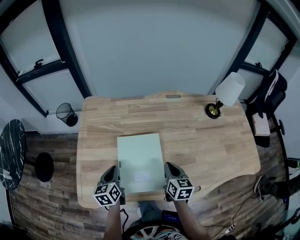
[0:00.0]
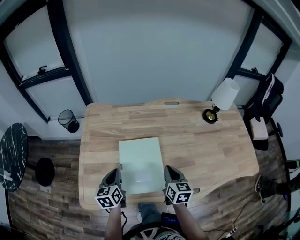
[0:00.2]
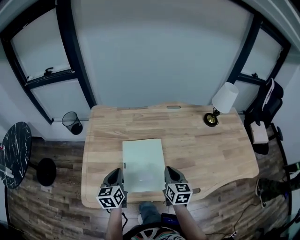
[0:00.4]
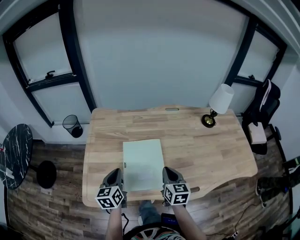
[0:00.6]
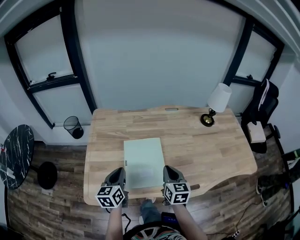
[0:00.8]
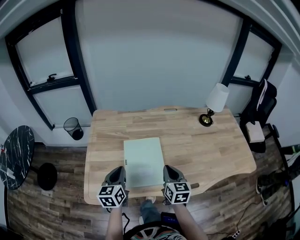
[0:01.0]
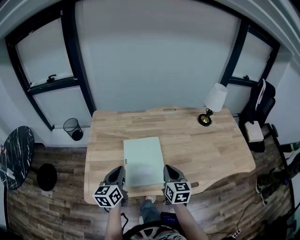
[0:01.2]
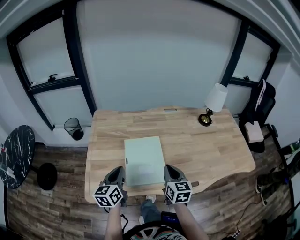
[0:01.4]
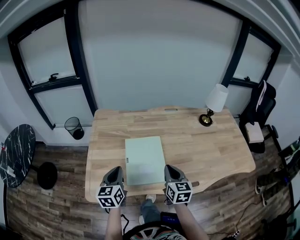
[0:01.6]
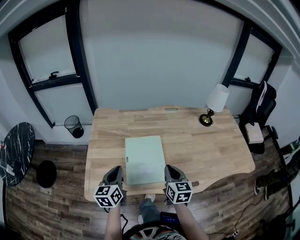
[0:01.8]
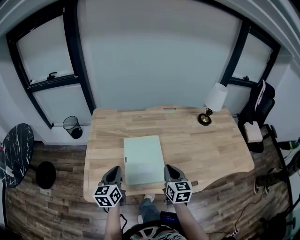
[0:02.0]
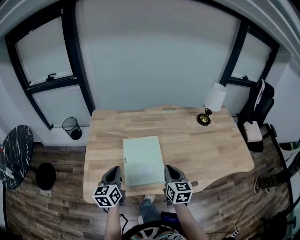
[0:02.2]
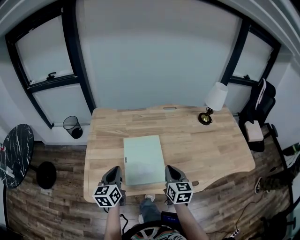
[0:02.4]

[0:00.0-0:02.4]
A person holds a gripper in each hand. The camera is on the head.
0:00.0 to 0:01.2: The two grippers go some 10 cm upward and backward.
0:01.2 to 0:02.4: The grippers move only a little.

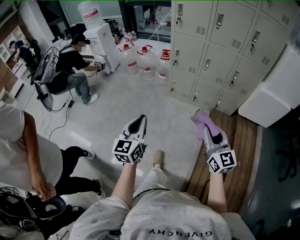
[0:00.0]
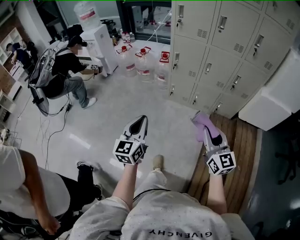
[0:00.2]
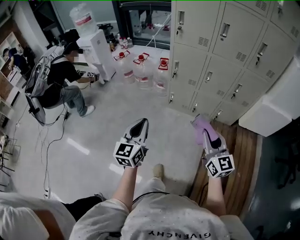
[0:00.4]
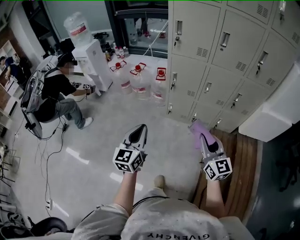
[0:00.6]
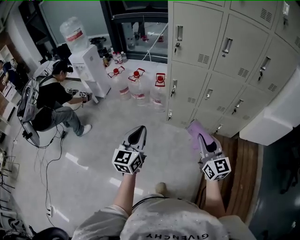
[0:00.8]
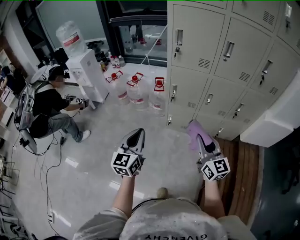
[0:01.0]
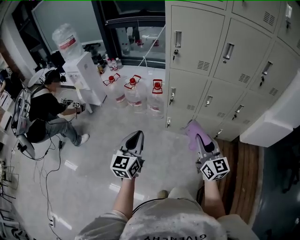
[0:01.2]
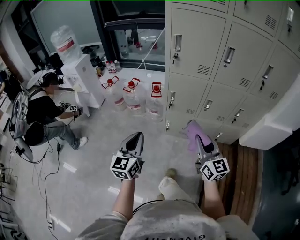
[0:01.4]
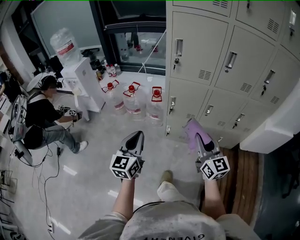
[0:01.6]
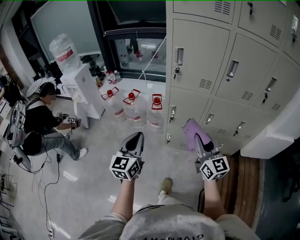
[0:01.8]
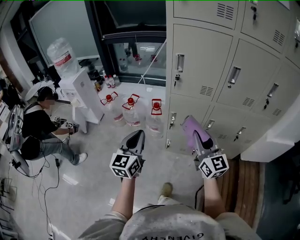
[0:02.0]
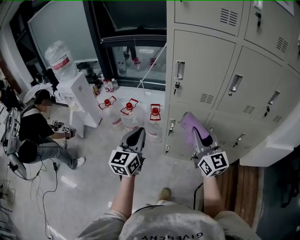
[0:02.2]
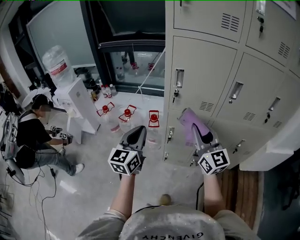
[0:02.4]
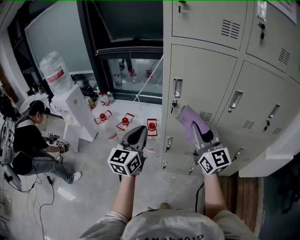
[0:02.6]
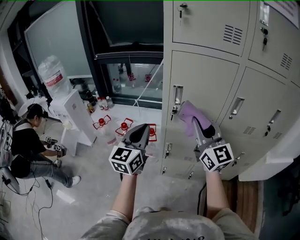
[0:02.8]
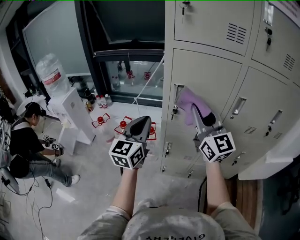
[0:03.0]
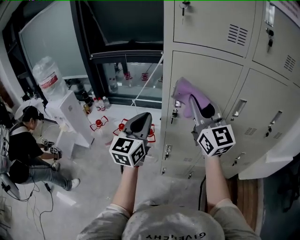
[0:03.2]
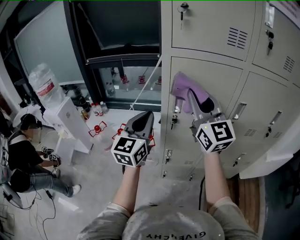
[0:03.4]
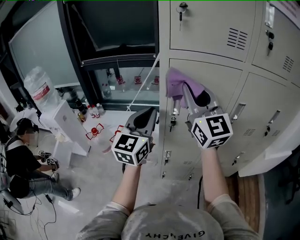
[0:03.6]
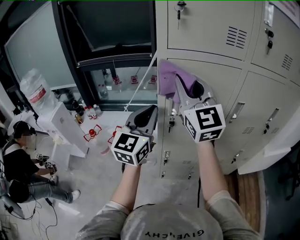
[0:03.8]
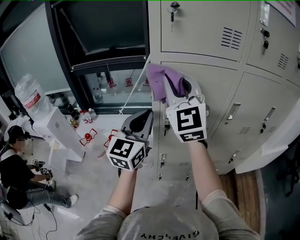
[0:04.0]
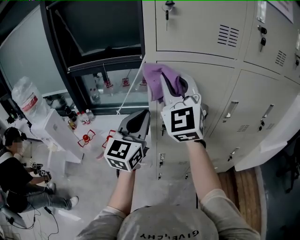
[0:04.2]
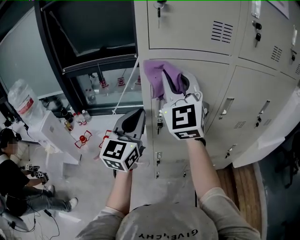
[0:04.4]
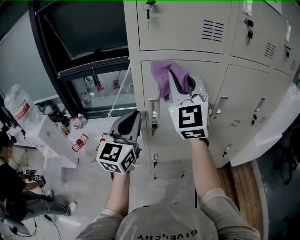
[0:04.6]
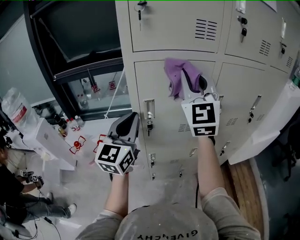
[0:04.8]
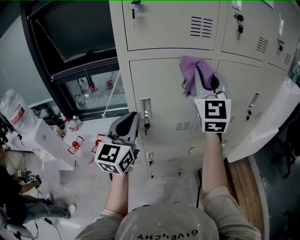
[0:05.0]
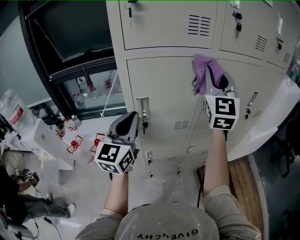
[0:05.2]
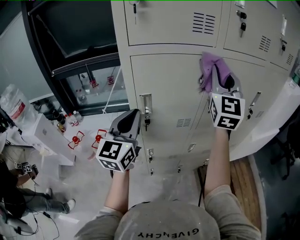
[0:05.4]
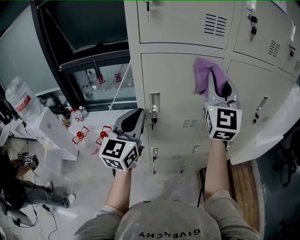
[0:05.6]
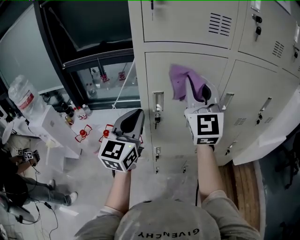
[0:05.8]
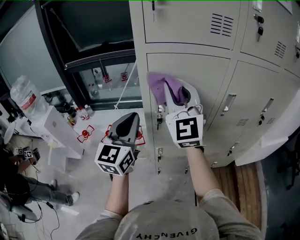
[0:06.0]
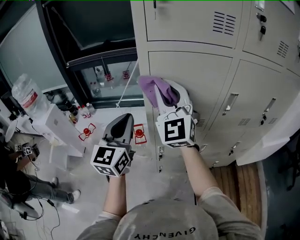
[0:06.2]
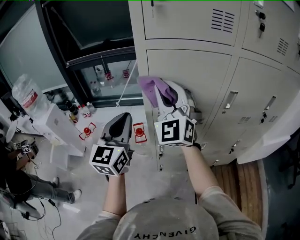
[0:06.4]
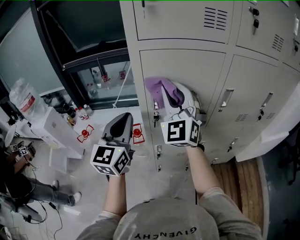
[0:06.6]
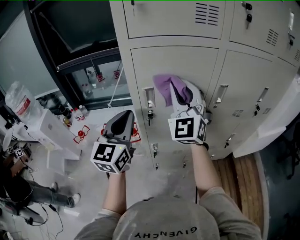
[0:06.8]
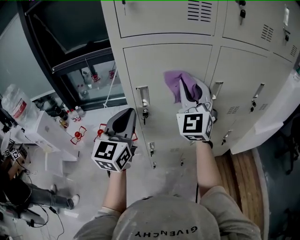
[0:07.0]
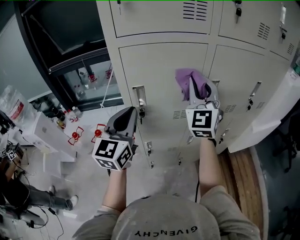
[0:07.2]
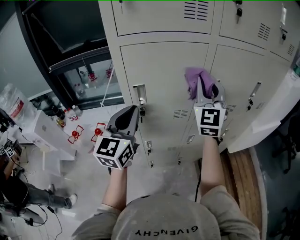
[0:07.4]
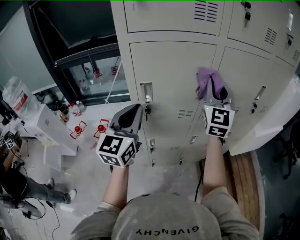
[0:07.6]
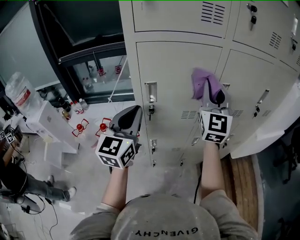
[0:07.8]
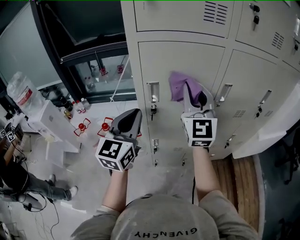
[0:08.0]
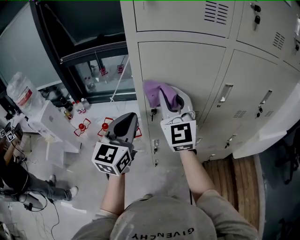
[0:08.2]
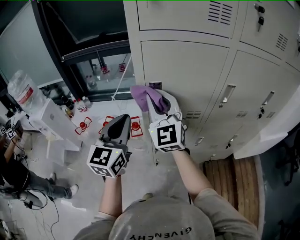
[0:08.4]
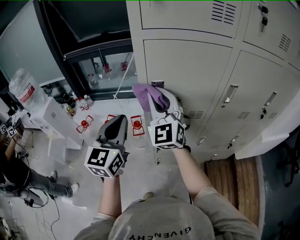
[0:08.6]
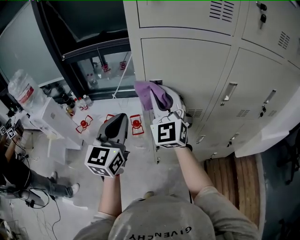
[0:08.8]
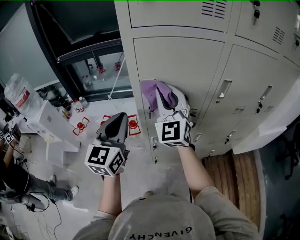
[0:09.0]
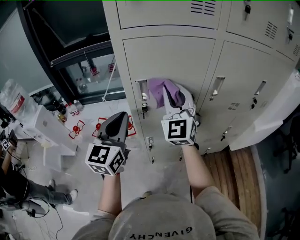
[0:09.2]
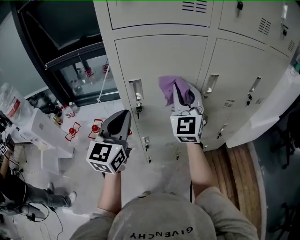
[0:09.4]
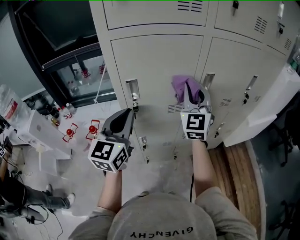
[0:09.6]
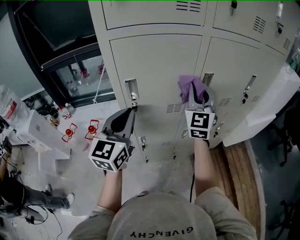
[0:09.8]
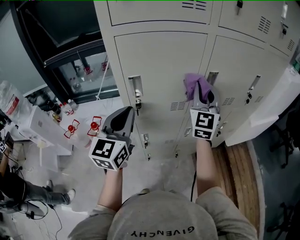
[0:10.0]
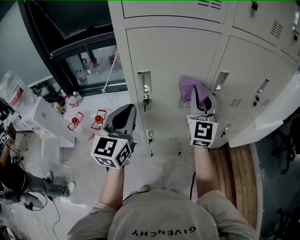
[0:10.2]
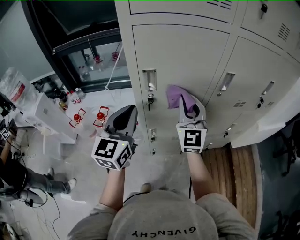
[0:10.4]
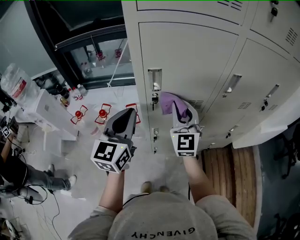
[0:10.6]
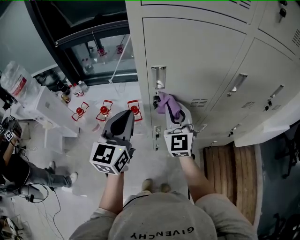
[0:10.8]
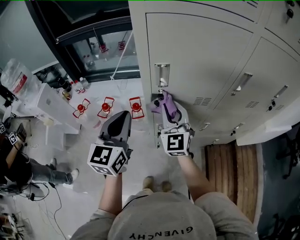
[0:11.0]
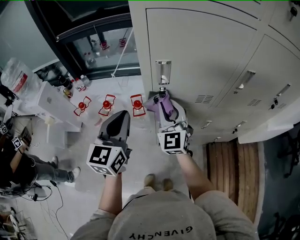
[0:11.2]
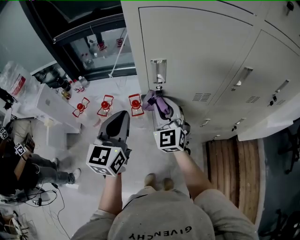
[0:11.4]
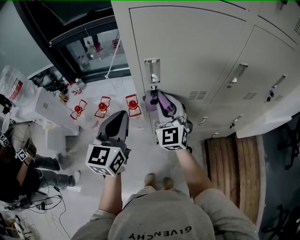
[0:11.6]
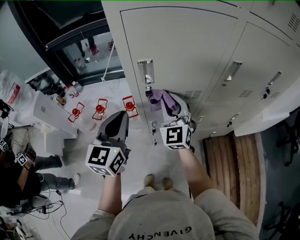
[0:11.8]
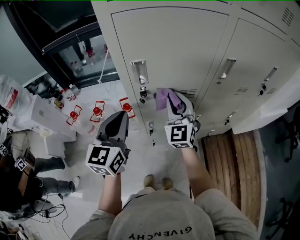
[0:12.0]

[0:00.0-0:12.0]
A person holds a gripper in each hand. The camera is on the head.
0:00.0 to 0:01.6: The two grippers travel together, forward, some 40 cm.
0:01.6 to 0:03.0: Both grippers travel together forward and upward, some 35 cm. The right gripper changes its angle by roughly 20 degrees.
0:03.0 to 0:04.4: The left gripper heads forward and upward, covering approximately 10 cm. The right gripper goes about 15 cm upward, forward and to the left, and changes its angle by roughly 40 degrees.
0:04.4 to 0:06.0: The right gripper heads downward, covering about 5 cm, and moves roughly 20 cm to the right and comes back.
0:06.0 to 0:07.6: The right gripper shifts some 20 cm to the right, and rotates some 30 degrees; the left gripper travels to the right by approximately 5 cm.
0:07.6 to 0:09.0: The left gripper goes about 5 cm to the left. The right gripper goes roughly 20 cm to the left, and rotates roughly 20 degrees.
0:09.0 to 0:10.4: The right gripper is displaced to the right and downward by about 10 cm.
0:10.4 to 0:12.0: The right gripper travels downward by about 10 cm, and goes to the left and returns, approximately 15 cm each way.

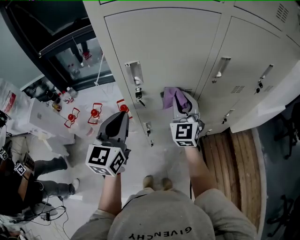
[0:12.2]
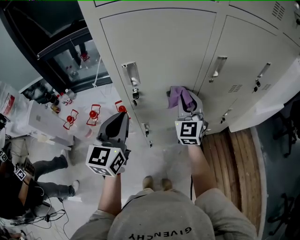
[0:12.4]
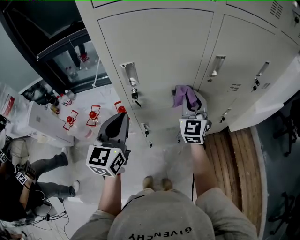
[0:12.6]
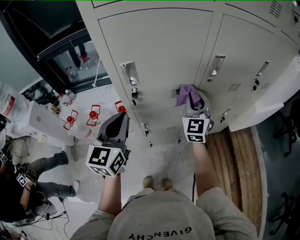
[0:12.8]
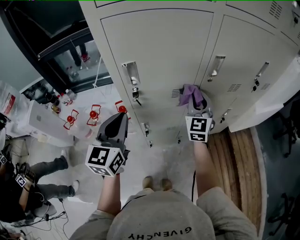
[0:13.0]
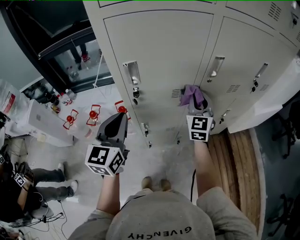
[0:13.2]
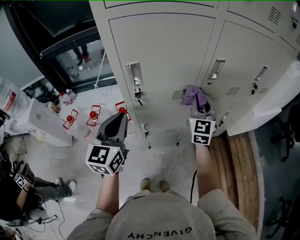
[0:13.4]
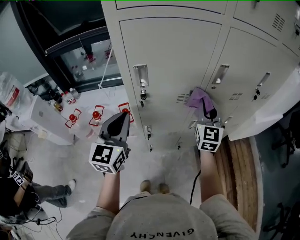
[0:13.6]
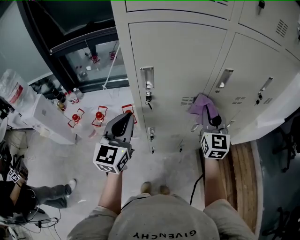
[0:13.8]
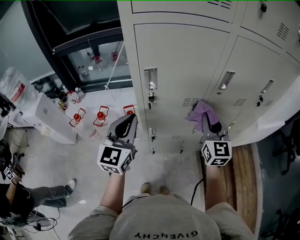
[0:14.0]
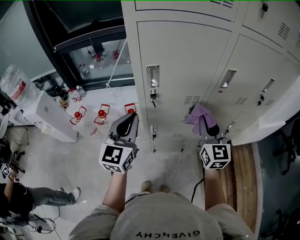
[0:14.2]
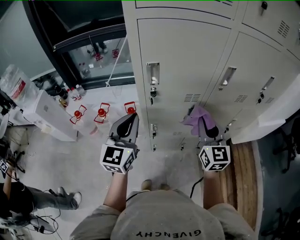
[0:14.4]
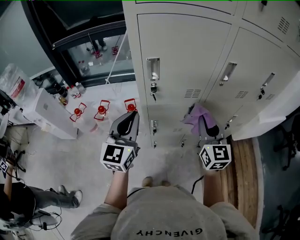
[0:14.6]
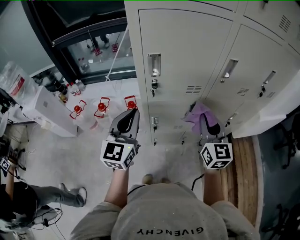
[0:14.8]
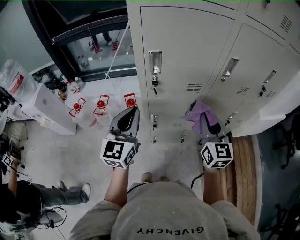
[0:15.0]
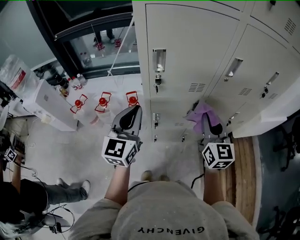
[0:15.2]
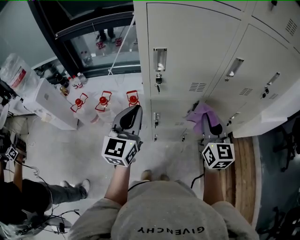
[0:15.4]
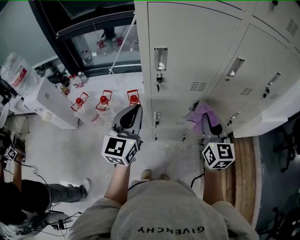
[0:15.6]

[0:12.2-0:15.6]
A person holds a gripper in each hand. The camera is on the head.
0:12.2 to 0:13.8: The right gripper heads to the right, covering about 10 cm.
0:13.8 to 0:15.6: The right gripper goes some 10 cm backward.

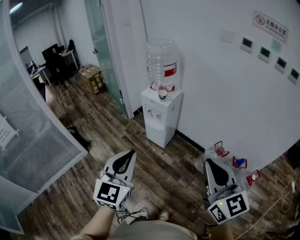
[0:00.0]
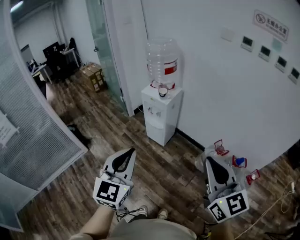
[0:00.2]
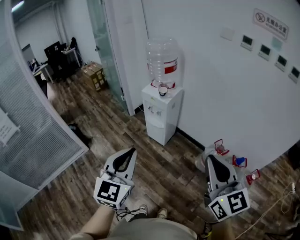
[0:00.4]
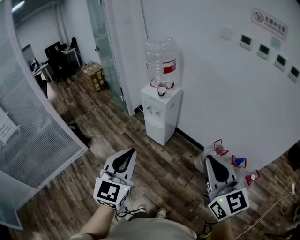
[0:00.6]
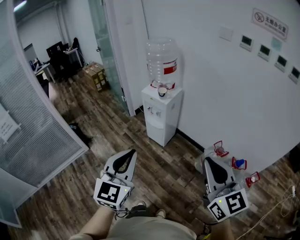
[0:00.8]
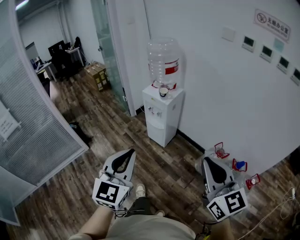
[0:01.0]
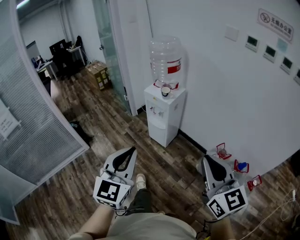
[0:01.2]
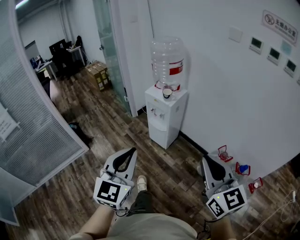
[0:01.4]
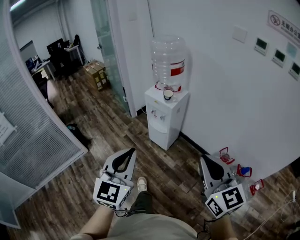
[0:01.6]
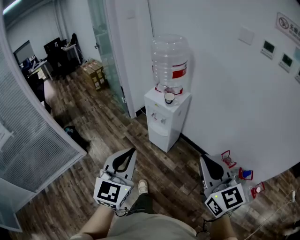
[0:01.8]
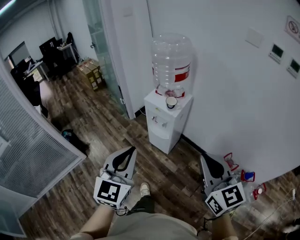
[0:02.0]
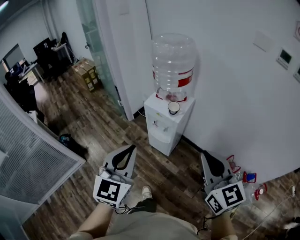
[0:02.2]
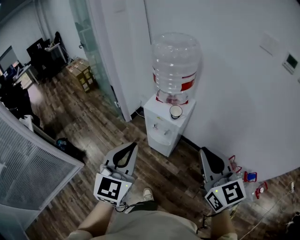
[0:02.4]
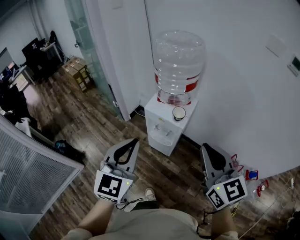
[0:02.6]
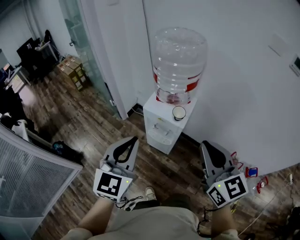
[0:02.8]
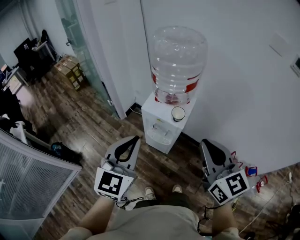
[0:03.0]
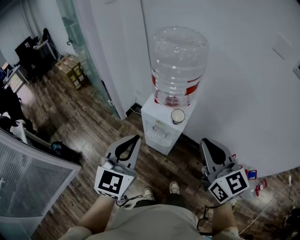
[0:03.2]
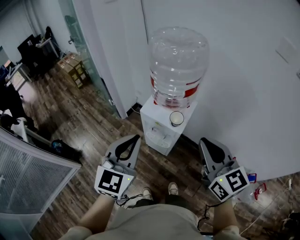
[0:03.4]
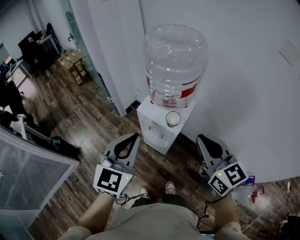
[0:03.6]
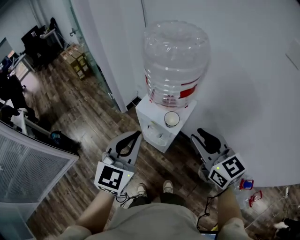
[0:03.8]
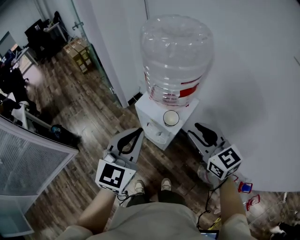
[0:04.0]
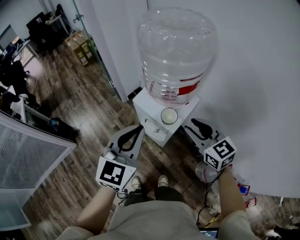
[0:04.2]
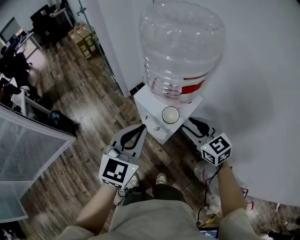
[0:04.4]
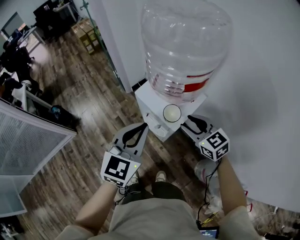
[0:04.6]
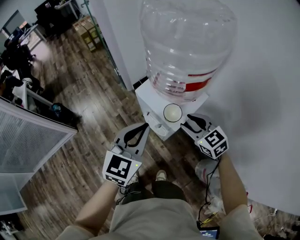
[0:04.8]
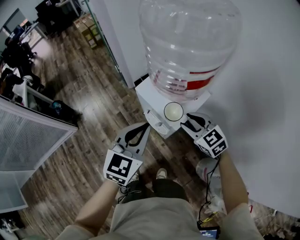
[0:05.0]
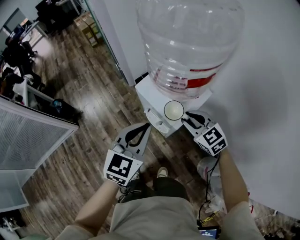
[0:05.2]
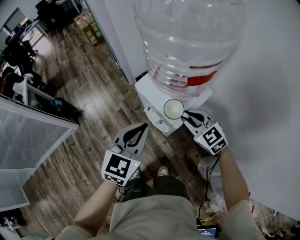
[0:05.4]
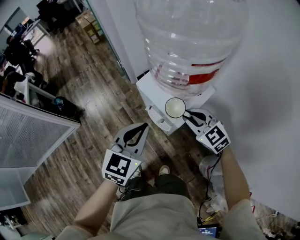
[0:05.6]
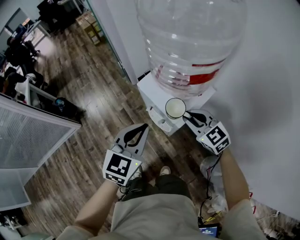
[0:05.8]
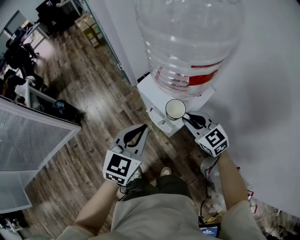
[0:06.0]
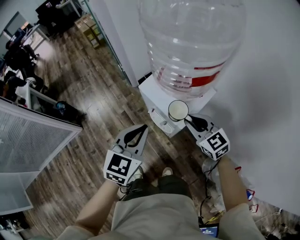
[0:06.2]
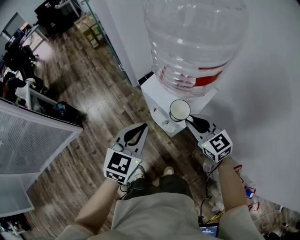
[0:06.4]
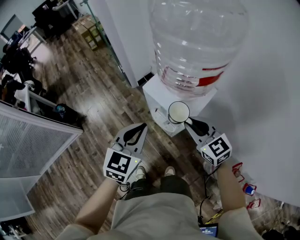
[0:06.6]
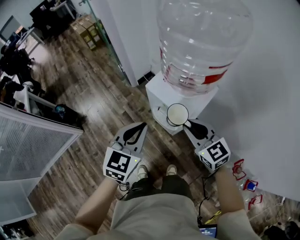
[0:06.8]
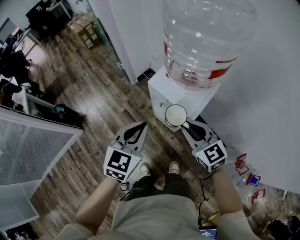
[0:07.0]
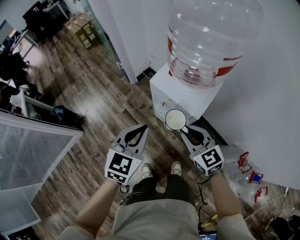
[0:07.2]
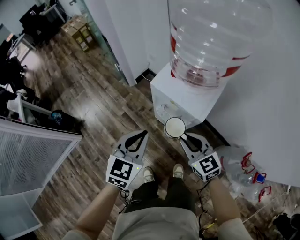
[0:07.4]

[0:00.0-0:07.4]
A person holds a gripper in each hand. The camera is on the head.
0:00.0 to 0:01.4: The right gripper travels forward by some 5 cm.
0:01.4 to 0:03.0: Both grippers are carried forward, approximately 40 cm.
0:03.0 to 0:04.4: The left gripper moves to the right, forward and downward, approximately 20 cm; the right gripper heads downward, forward and to the right, covering about 30 cm, rotates some 30 degrees, and opens its fingers.
0:04.4 to 0:06.0: The grippers both shift downward by about 10 cm. The right gripper closes up.
0:06.0 to 0:07.4: The right gripper travels to the left and backward by some 15 cm; the left gripper is displaced to the left and downward by approximately 10 cm.
